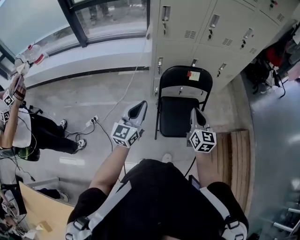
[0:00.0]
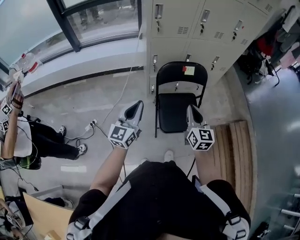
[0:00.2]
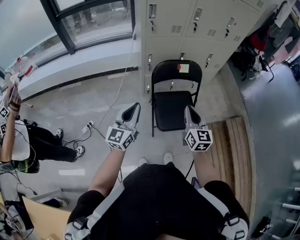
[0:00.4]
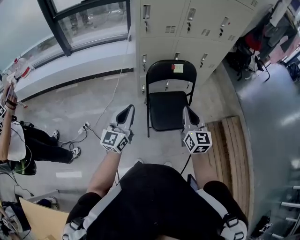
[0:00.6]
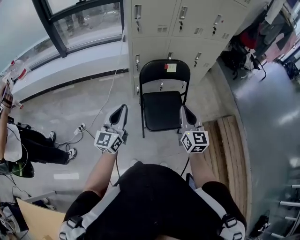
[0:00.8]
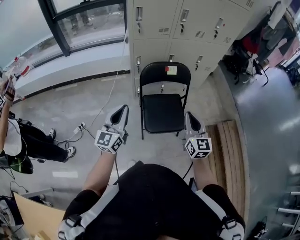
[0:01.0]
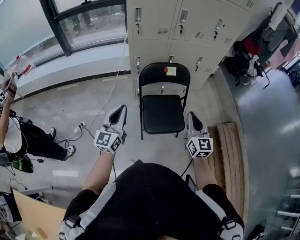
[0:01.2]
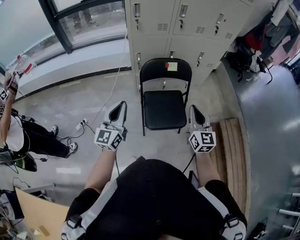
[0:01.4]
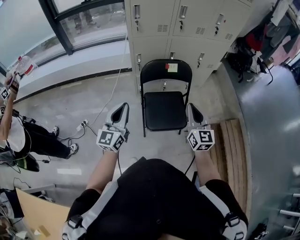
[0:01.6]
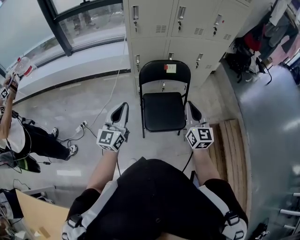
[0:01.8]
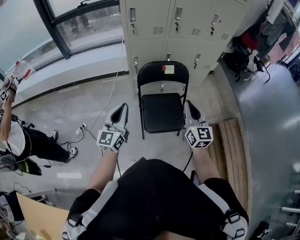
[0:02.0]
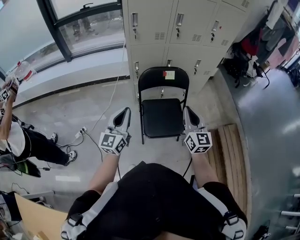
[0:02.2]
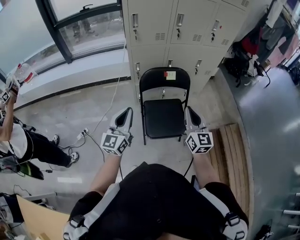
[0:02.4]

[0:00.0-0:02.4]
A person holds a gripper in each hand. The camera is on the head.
0:00.0 to 0:01.2: The left gripper travels backward by roughly 5 cm. The right gripper shifts some 15 cm to the right and backward.
0:01.2 to 0:02.4: The grippers stay close to where they were, moving slightly.

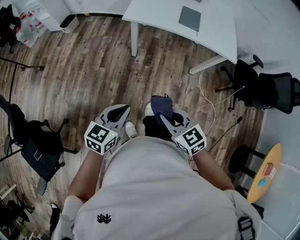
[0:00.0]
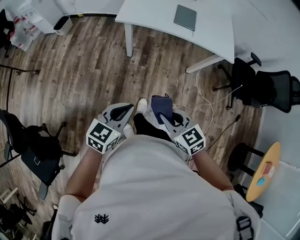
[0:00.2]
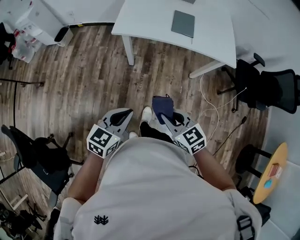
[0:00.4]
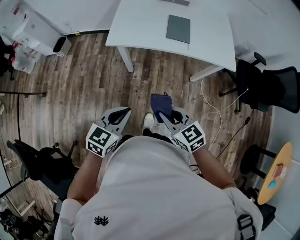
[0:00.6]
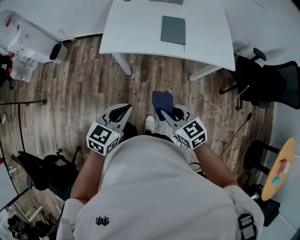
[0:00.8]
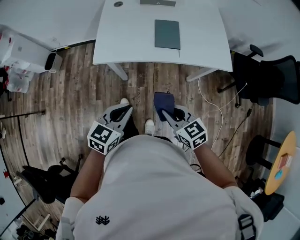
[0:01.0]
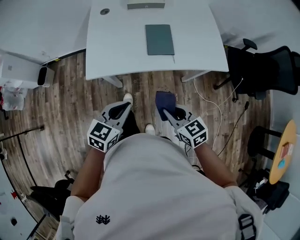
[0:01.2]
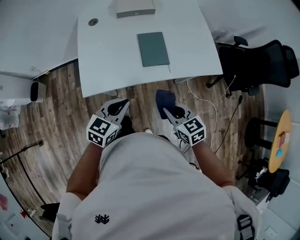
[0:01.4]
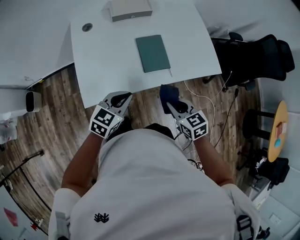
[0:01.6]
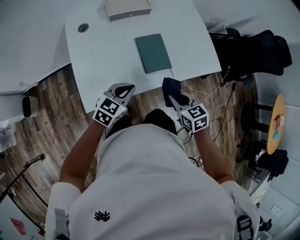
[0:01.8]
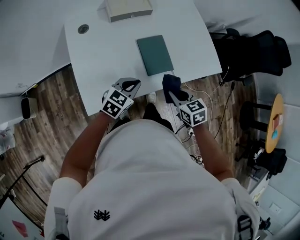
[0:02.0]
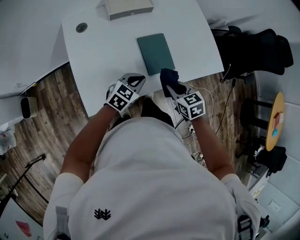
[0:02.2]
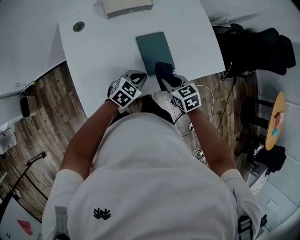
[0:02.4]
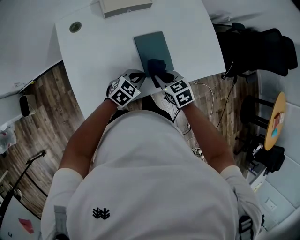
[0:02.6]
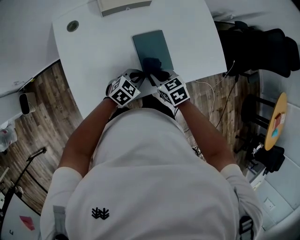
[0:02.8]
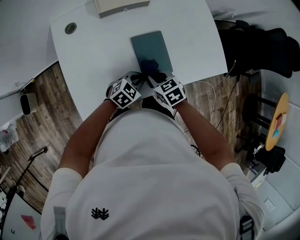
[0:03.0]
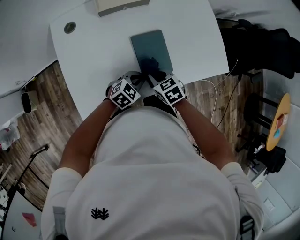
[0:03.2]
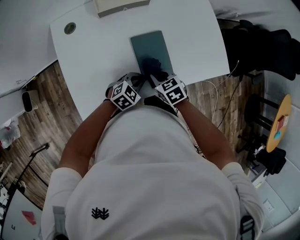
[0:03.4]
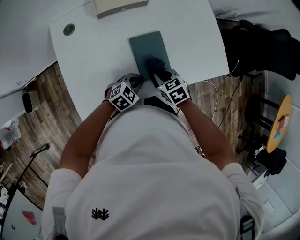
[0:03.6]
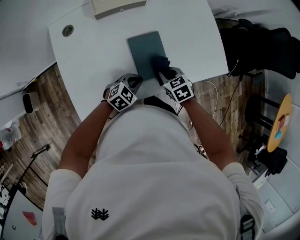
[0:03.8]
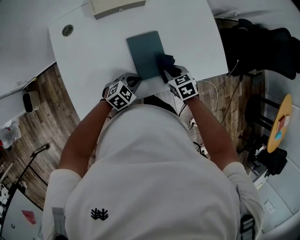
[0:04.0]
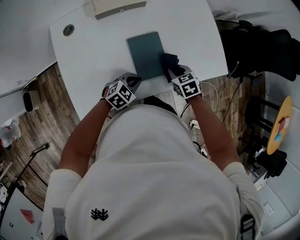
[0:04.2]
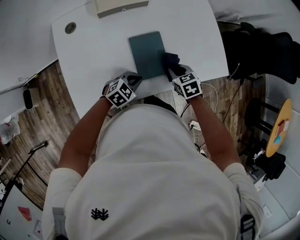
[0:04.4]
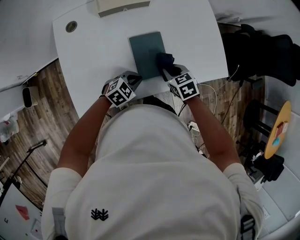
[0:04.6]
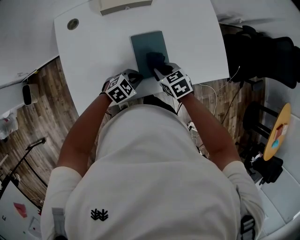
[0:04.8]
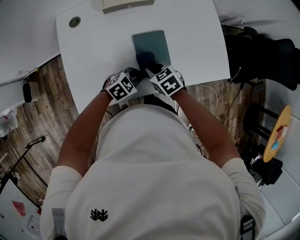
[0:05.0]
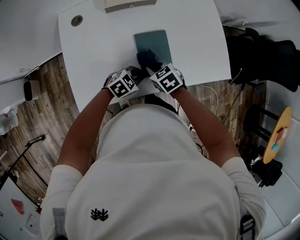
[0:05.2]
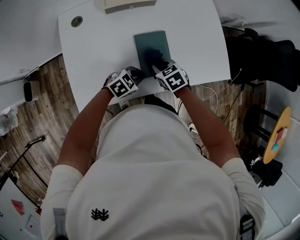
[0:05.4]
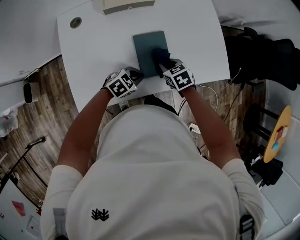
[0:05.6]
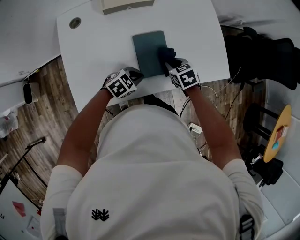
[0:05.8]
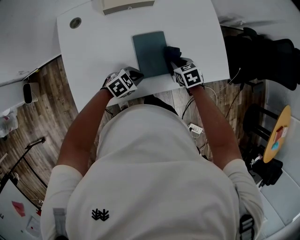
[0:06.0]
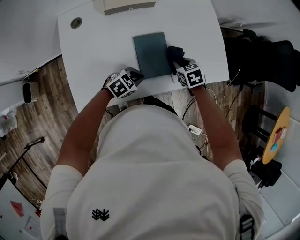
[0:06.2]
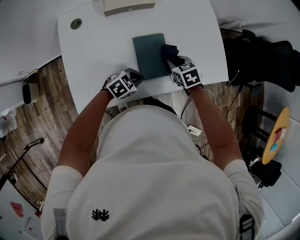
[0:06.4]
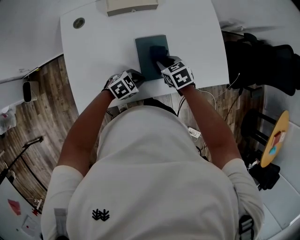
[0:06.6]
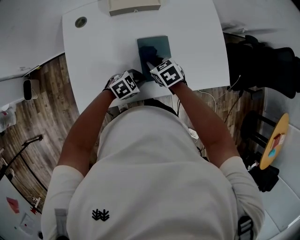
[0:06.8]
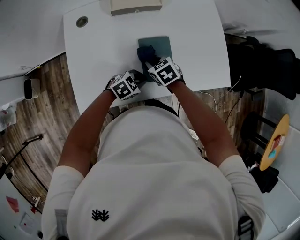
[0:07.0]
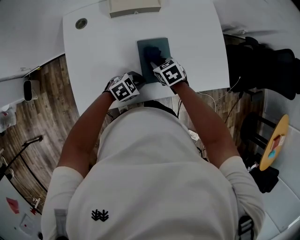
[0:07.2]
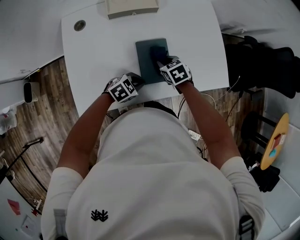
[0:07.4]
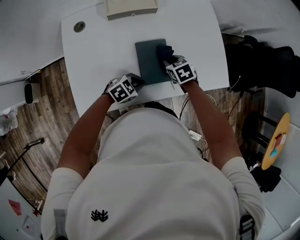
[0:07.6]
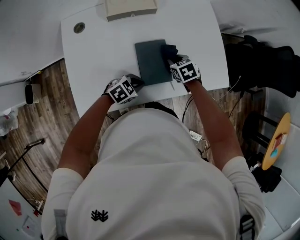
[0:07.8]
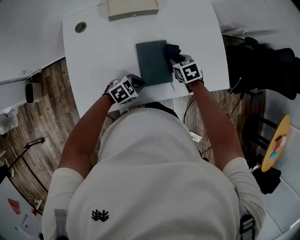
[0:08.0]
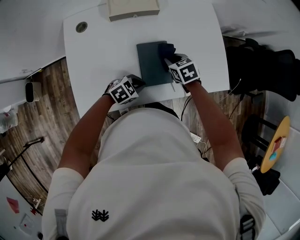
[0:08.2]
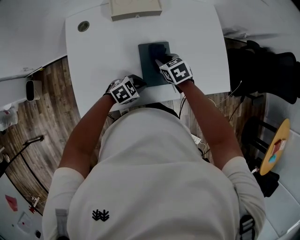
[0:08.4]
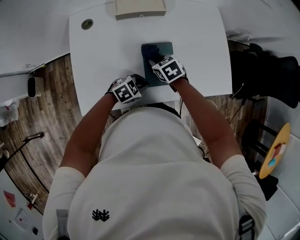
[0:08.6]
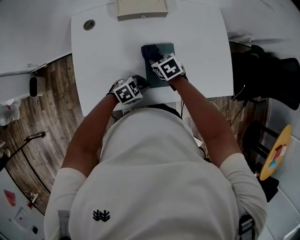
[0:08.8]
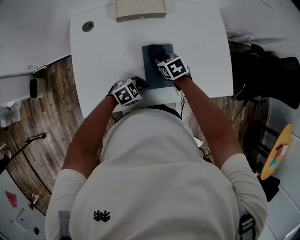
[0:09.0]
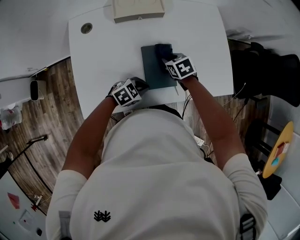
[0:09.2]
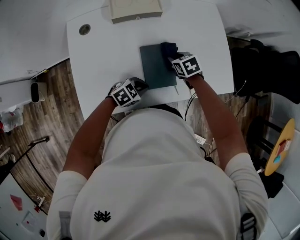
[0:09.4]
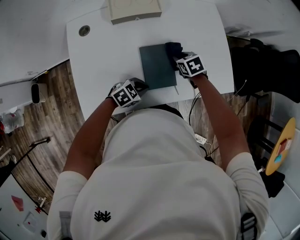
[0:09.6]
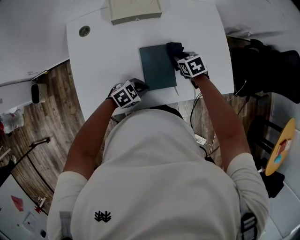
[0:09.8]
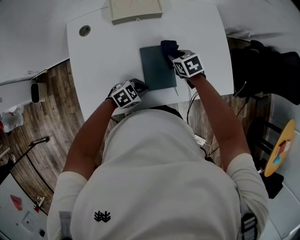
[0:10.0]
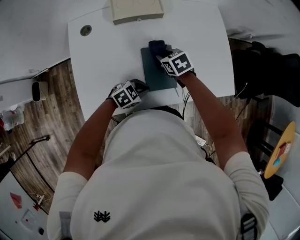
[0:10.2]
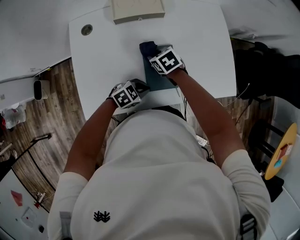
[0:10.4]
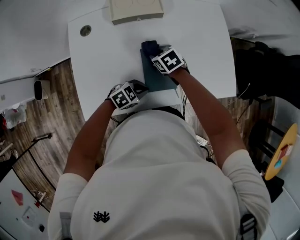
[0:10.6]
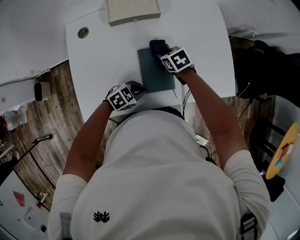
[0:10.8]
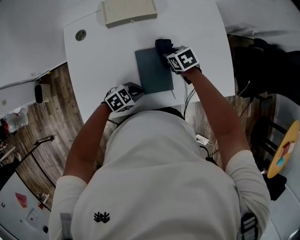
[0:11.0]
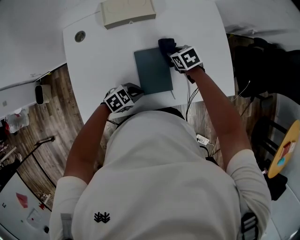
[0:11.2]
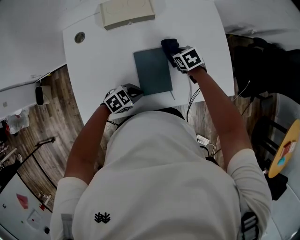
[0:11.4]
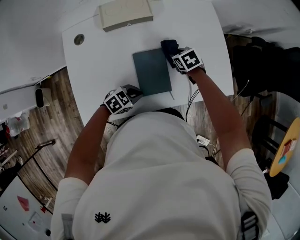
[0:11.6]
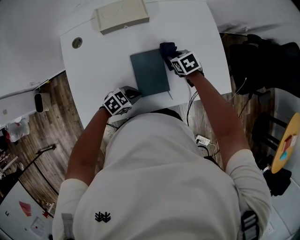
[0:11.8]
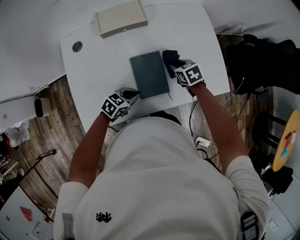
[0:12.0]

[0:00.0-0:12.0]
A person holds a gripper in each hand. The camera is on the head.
0:00.0 to 0:01.6: Both grippers are carried some 40 cm. The right gripper rotates about 40 degrees. The left gripper changes its angle by approximately 40 degrees.
0:01.6 to 0:03.0: The right gripper goes about 20 cm forward, downward and to the left, while the left gripper goes about 20 cm downward, forward and to the right, and changes its angle by approximately 20 degrees.
0:03.0 to 0:04.4: The right gripper is displaced to the right and forward by some 10 cm.
0:07.6 to 0:09.0: The right gripper ends up some 5 cm from where it was.
0:10.4 to 0:12.0: The right gripper moves approximately 15 cm.

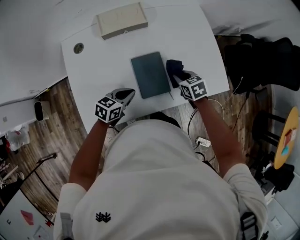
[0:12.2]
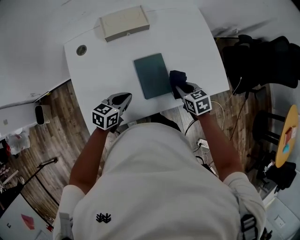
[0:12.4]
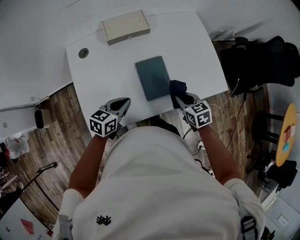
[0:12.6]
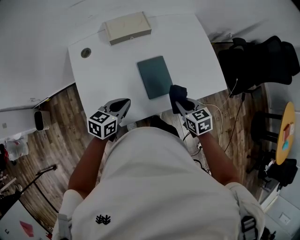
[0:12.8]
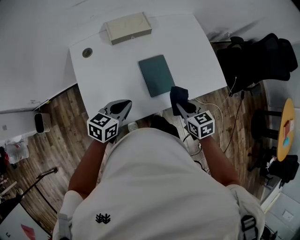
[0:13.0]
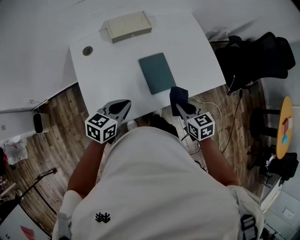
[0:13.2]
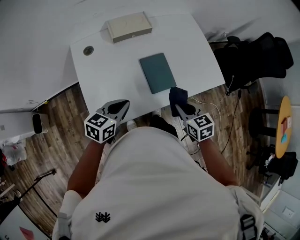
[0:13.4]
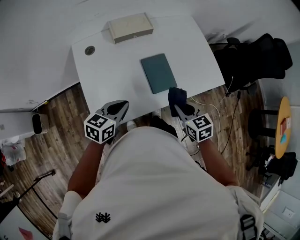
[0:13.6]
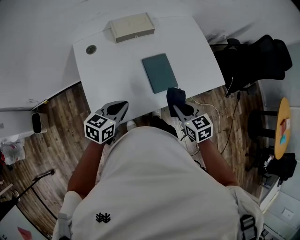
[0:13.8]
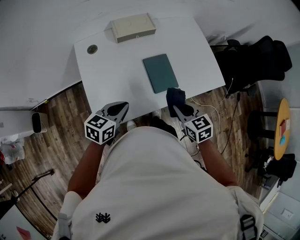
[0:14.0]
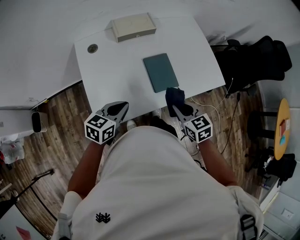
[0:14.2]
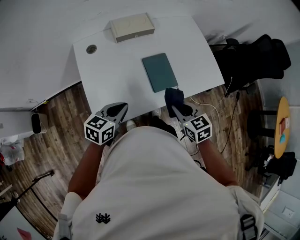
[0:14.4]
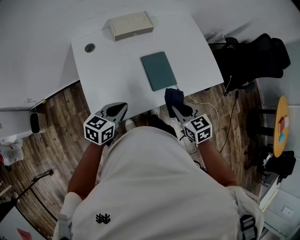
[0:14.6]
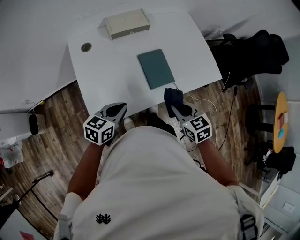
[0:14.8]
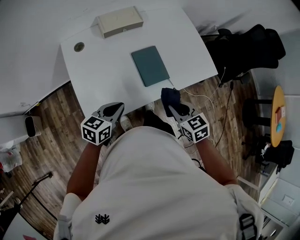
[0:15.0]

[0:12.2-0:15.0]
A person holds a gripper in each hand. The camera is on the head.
0:12.2 to 0:13.6: The left gripper shifts roughly 15 cm upward, backward and to the left. The right gripper goes about 20 cm backward and upward.
0:13.6 to 0:15.0: There are only small adjustments of the grippers.

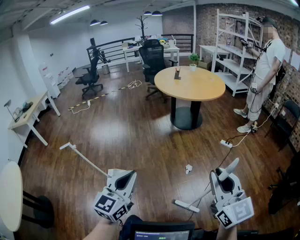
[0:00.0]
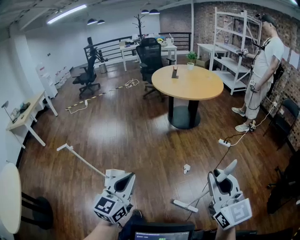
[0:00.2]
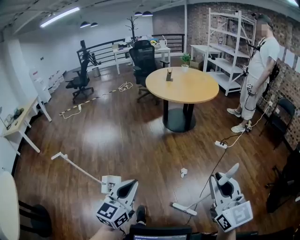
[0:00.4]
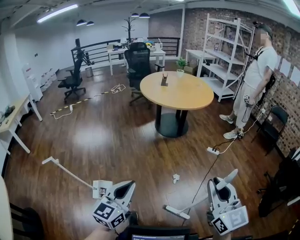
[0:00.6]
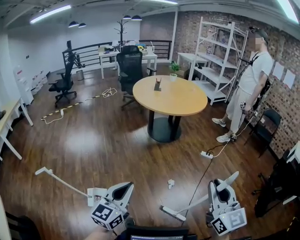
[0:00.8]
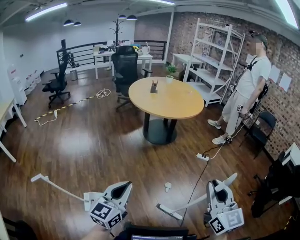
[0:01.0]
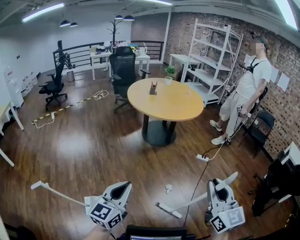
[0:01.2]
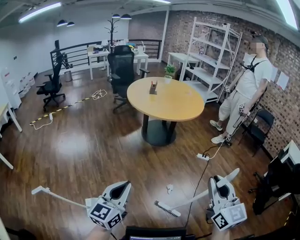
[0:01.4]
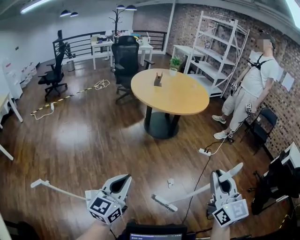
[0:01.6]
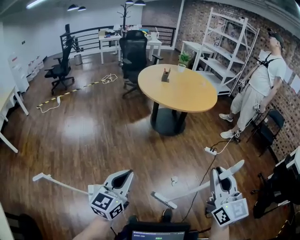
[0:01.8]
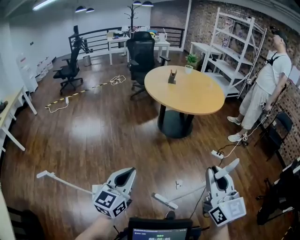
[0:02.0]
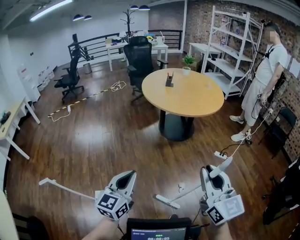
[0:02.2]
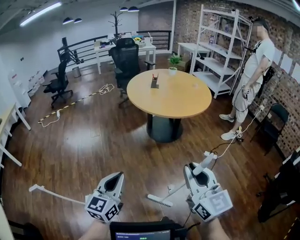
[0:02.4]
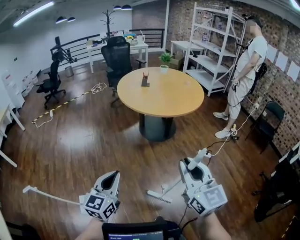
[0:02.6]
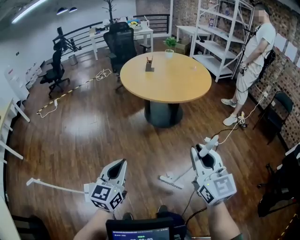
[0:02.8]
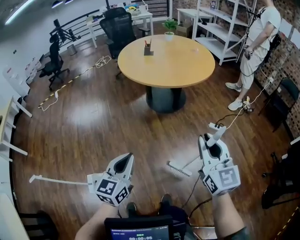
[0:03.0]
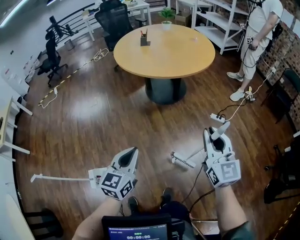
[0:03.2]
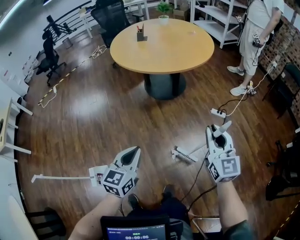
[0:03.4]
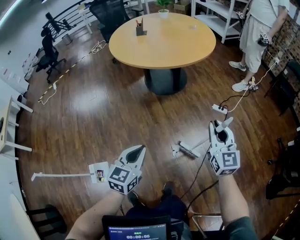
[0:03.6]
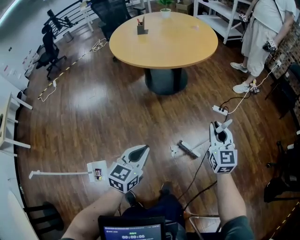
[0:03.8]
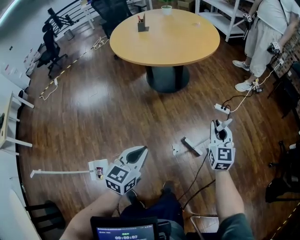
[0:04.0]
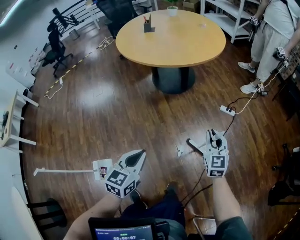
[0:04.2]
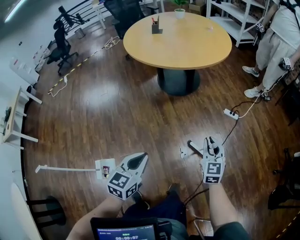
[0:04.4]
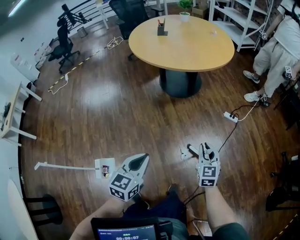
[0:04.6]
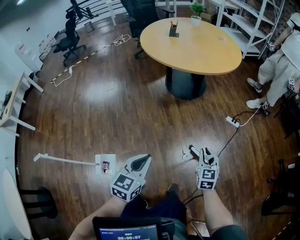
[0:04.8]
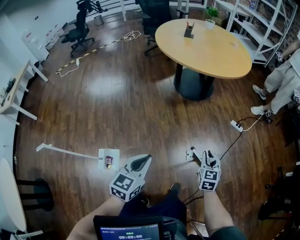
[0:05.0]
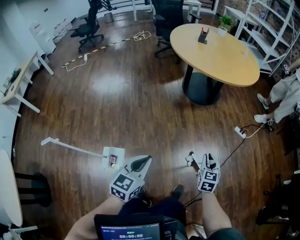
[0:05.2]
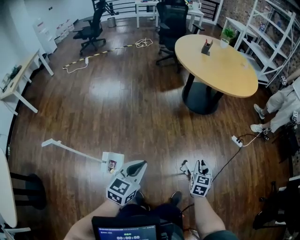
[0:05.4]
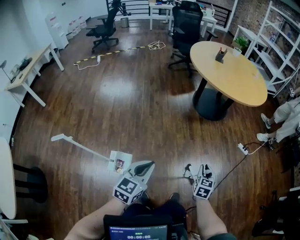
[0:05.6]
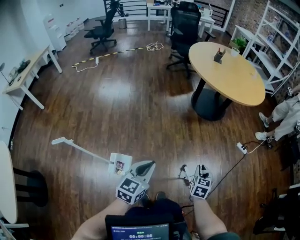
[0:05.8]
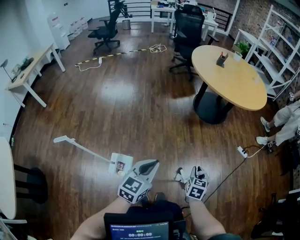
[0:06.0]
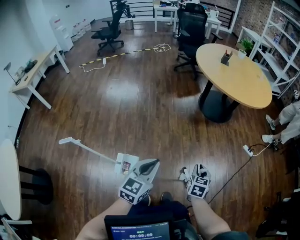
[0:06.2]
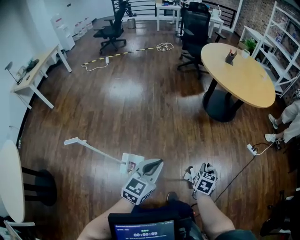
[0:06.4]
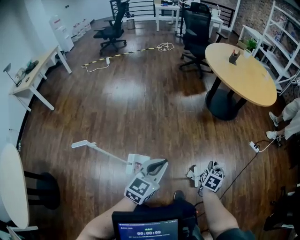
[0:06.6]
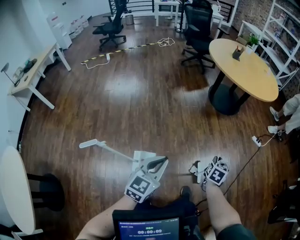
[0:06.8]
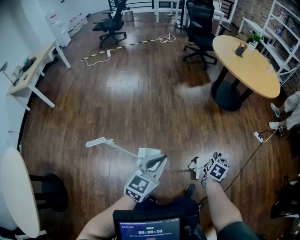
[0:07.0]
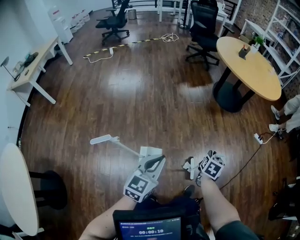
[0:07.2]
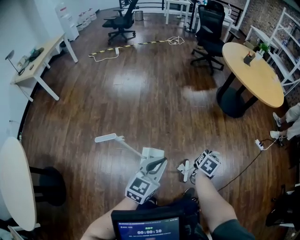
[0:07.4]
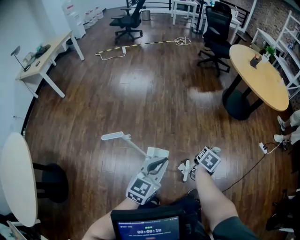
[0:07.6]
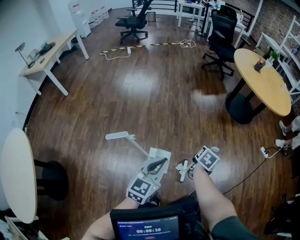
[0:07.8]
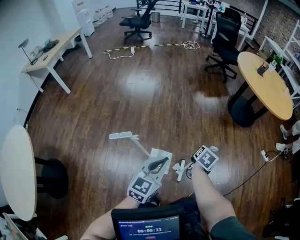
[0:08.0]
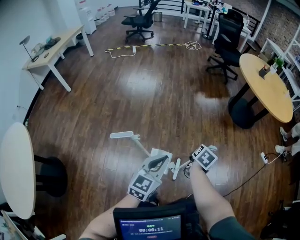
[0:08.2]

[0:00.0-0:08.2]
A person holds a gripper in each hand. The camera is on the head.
0:00.0 to 0:01.6: The two grippers travel together, forward and to the left, about 50 cm.
0:01.6 to 0:03.2: The two grippers travel together, to the right and forward, roughly 50 cm. The grippers both shift downward by approximately 20 cm.
0:03.2 to 0:05.0: The right gripper heads downward and to the left, covering about 35 cm, and turns by some 30 degrees. Meanwhile the left gripper shifts about 25 cm to the left and backward.
0:05.0 to 0:06.6: Both grippers are carried to the left and backward, some 50 cm. The right gripper changes its angle by approximately 20 degrees.
0:06.6 to 0:08.2: Both grippers move to the left and backward, approximately 40 cm.
